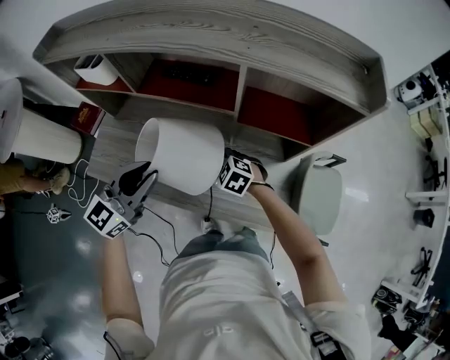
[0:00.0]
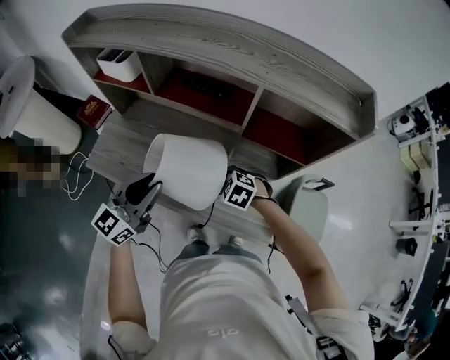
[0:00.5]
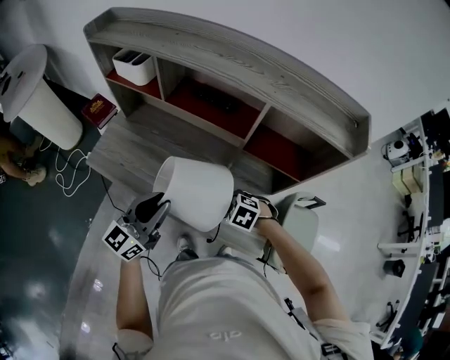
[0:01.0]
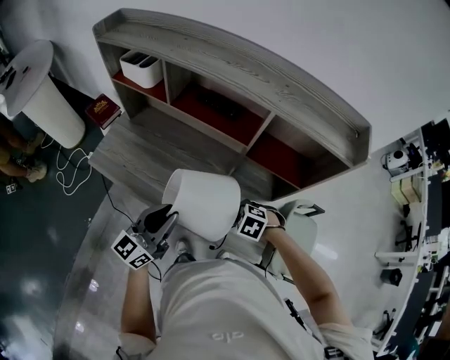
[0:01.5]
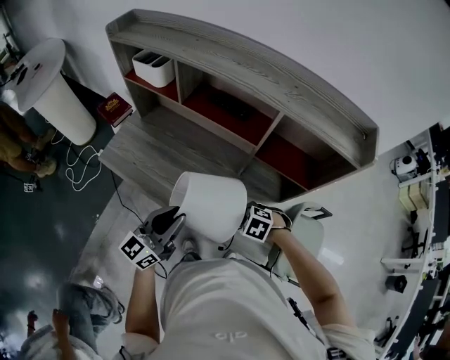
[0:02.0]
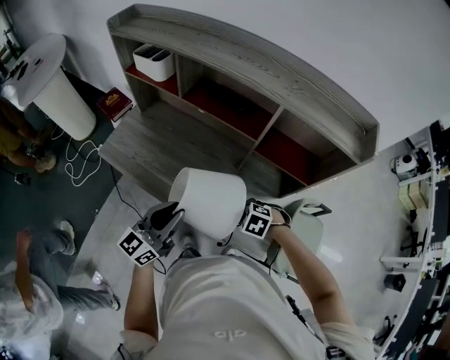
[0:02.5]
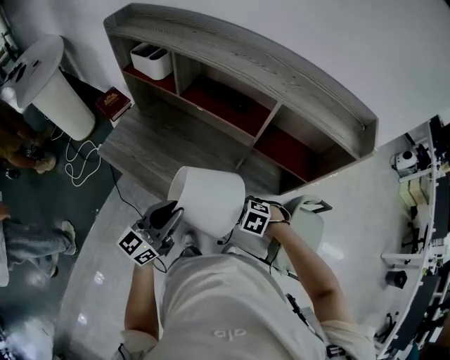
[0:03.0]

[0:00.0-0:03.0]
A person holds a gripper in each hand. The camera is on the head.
0:00.0 to 0:01.5: The right gripper changes place by about 15 cm, and changes its angle by roughly 20 degrees; the left gripper ends up some 10 cm from where it was, and changes its angle by about 30 degrees.
0:01.5 to 0:03.0: There are only small adjustments of the grippers.

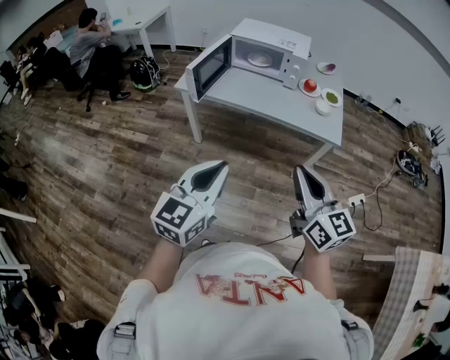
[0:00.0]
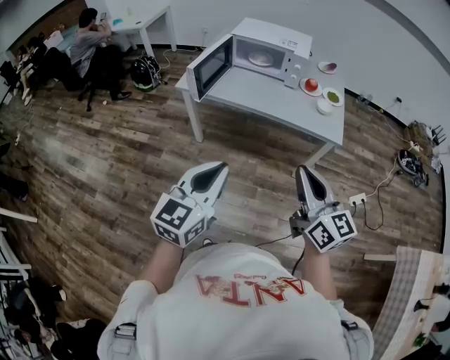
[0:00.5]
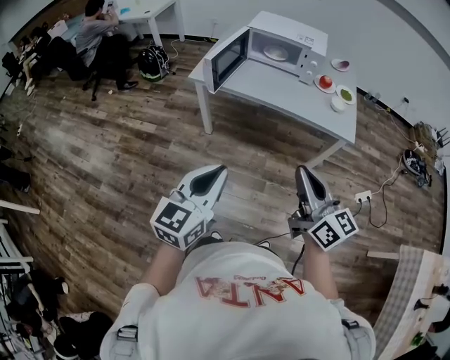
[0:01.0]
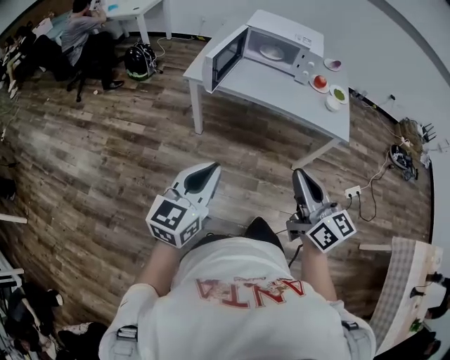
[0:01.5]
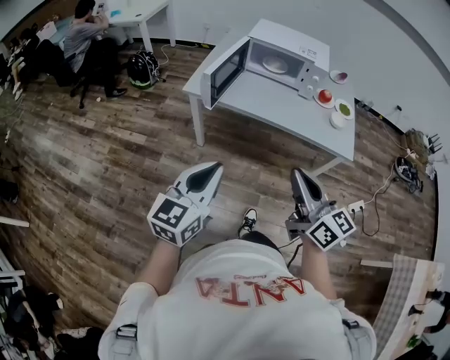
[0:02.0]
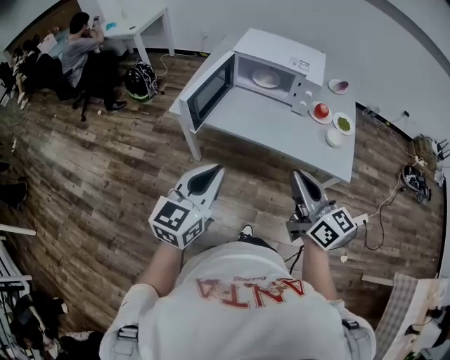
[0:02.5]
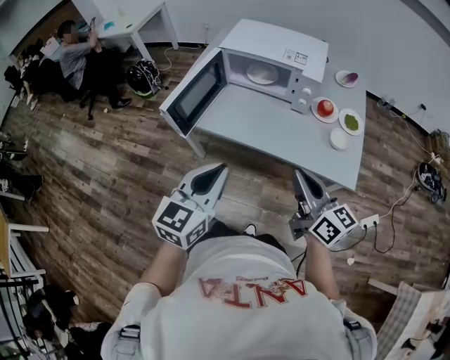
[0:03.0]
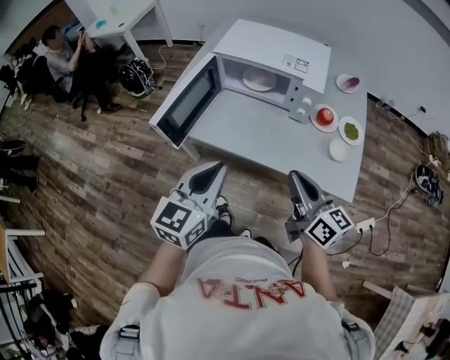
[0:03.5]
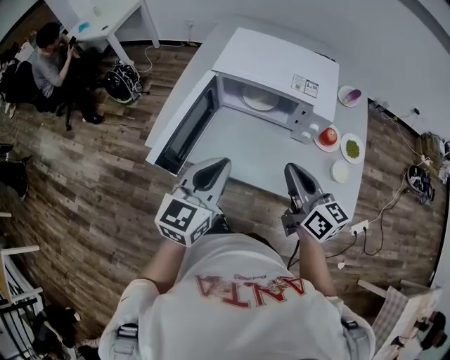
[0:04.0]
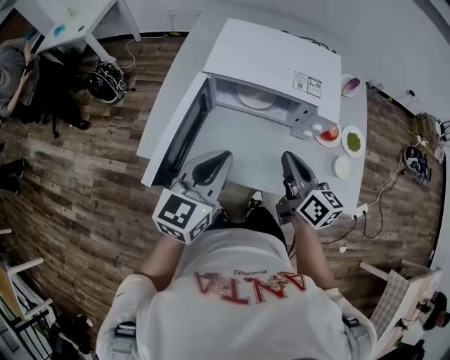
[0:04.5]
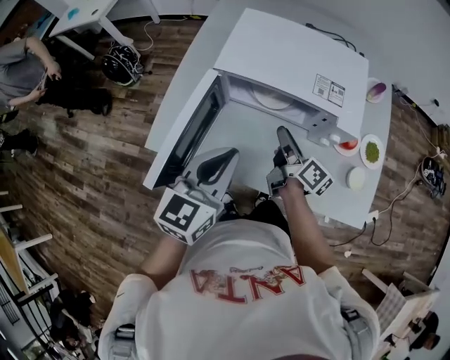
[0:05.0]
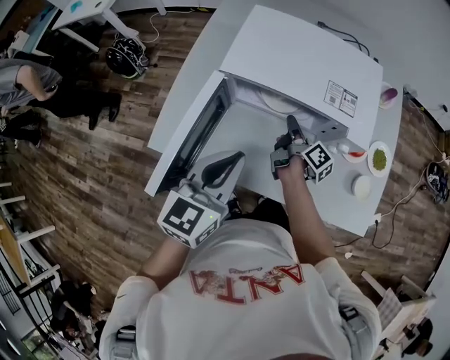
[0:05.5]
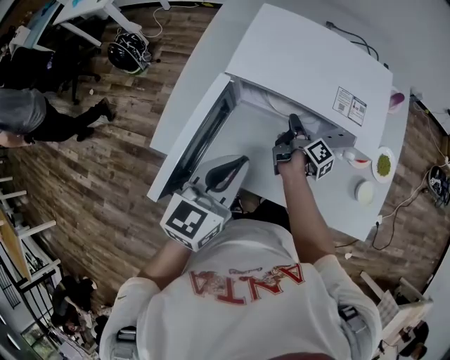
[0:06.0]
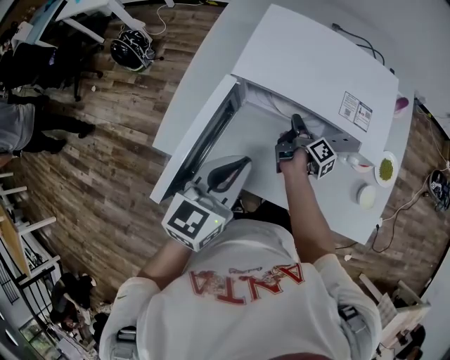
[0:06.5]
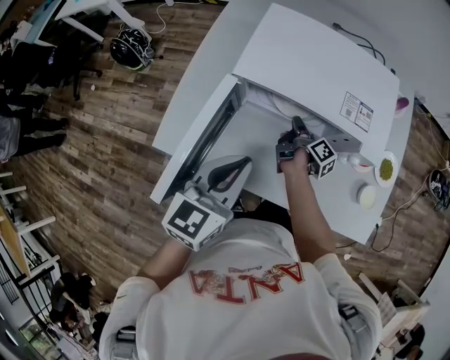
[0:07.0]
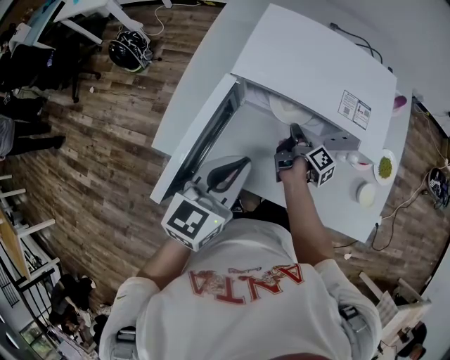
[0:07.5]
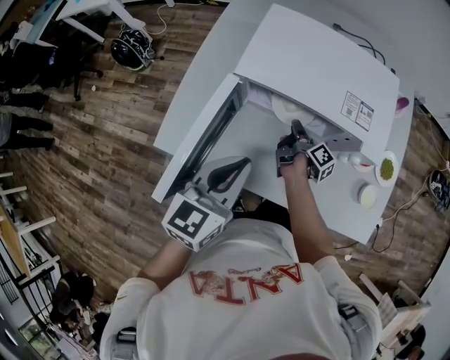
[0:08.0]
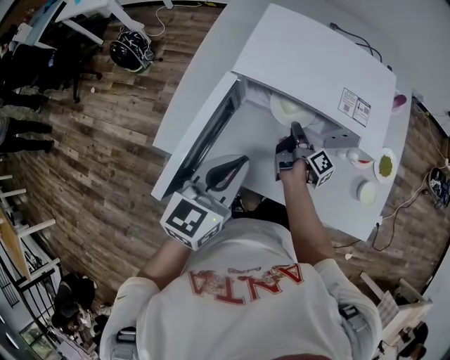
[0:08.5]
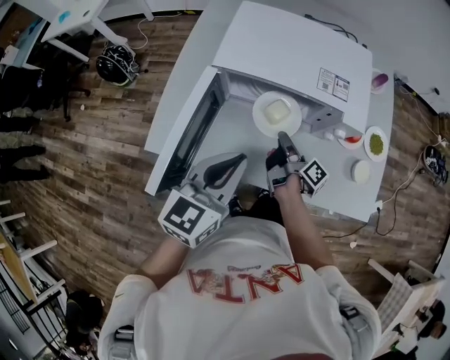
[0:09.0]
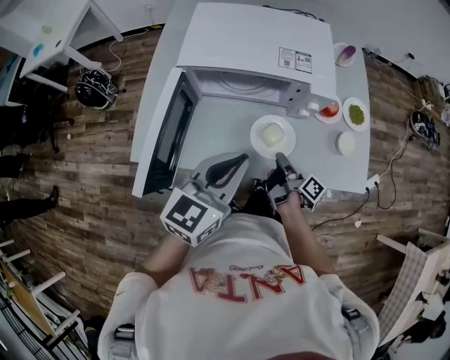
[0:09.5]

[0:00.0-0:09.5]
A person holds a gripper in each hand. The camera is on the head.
0:00.0 to 0:02.0: Both grippers move to the left and forward, approximately 15 cm.
0:02.0 to 0:04.0: The two grippers travel together, forward, some 40 cm.
0:04.0 to 0:05.5: The left gripper is displaced forward by about 10 cm. The right gripper is displaced forward and downward by approximately 30 cm, twists some 50 degrees clockwise, seen from behind, and opens its fingers.
0:05.5 to 0:07.5: The right gripper closes its fingers.
0:07.5 to 0:09.5: The right gripper travels backward and to the right by about 20 cm; the left gripper moves to the right and backward, about 10 cm.

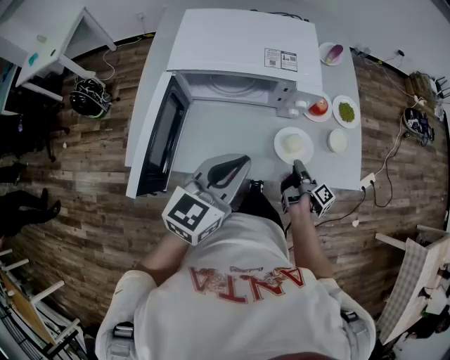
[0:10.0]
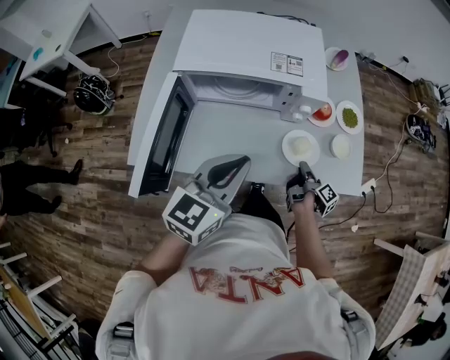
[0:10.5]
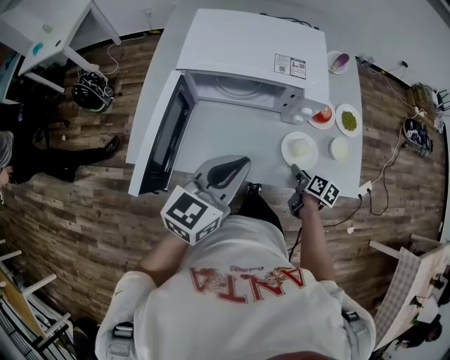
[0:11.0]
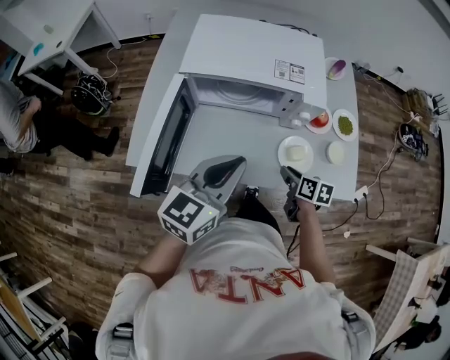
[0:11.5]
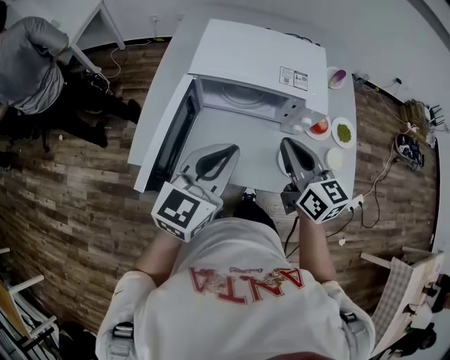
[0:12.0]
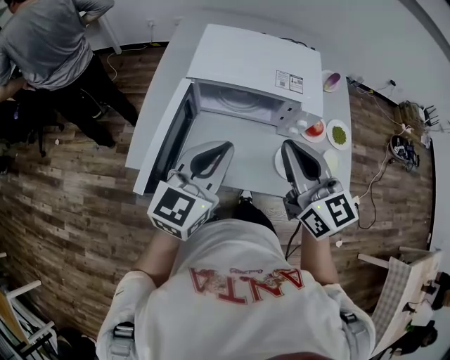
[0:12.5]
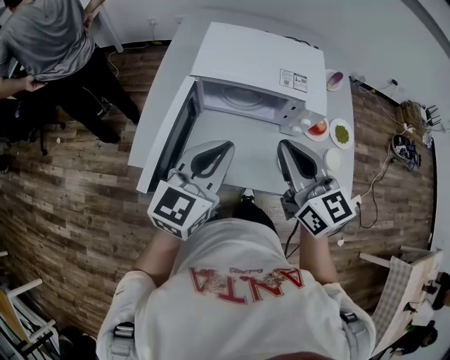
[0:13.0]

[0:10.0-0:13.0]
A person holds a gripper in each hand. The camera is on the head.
0:10.0 to 0:11.5: The right gripper is displaced to the left by some 5 cm, and rolls counterclockwise, seen from behind, by about 60 degrees.
0:11.5 to 0:13.0: The right gripper goes approximately 35 cm upward and to the left, angles its fingers upward, by about 40 degrees, and closes its fingers. Meanwhile the left gripper moves to the left, roughly 5 cm.

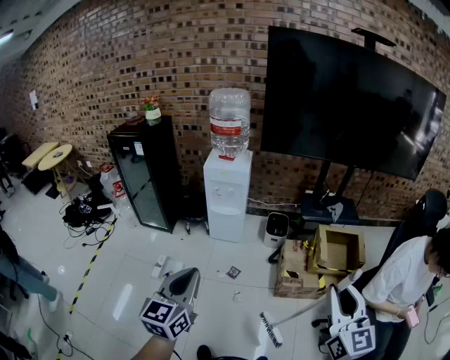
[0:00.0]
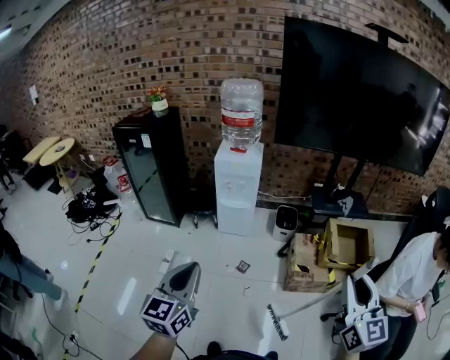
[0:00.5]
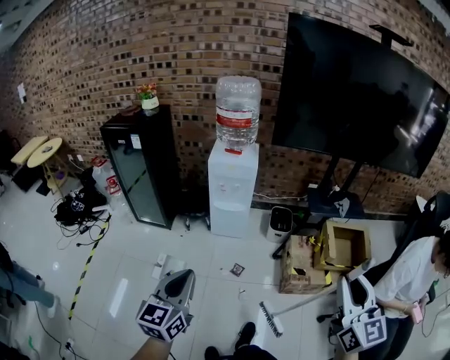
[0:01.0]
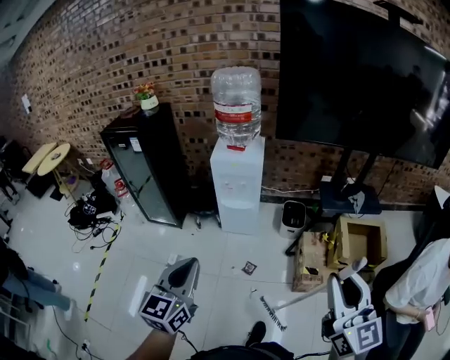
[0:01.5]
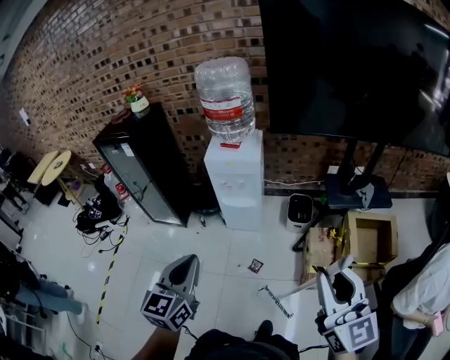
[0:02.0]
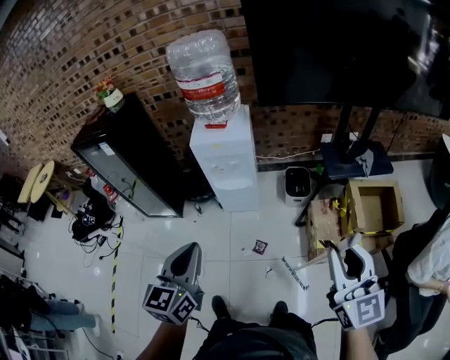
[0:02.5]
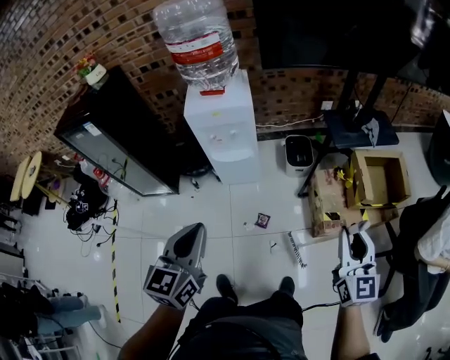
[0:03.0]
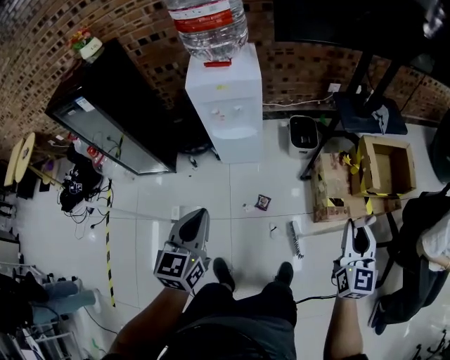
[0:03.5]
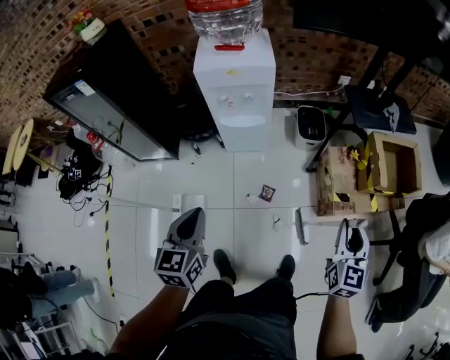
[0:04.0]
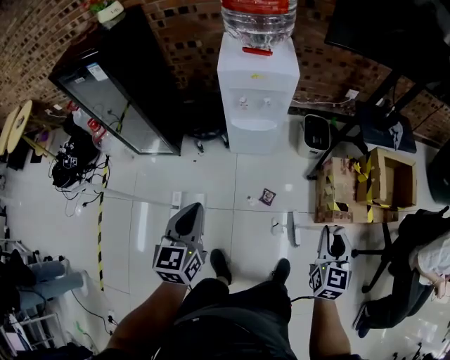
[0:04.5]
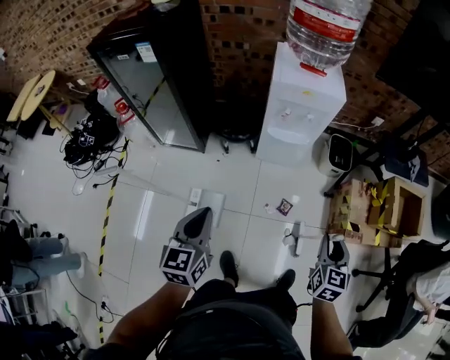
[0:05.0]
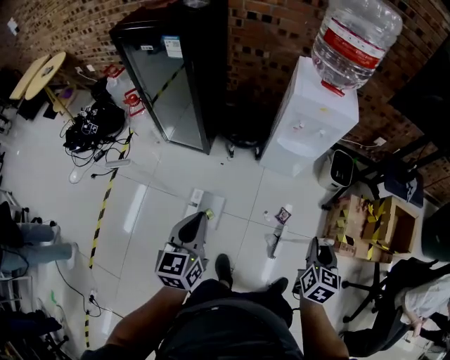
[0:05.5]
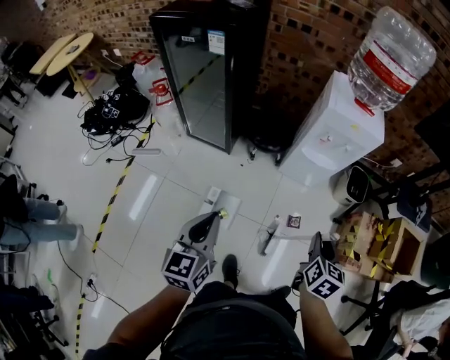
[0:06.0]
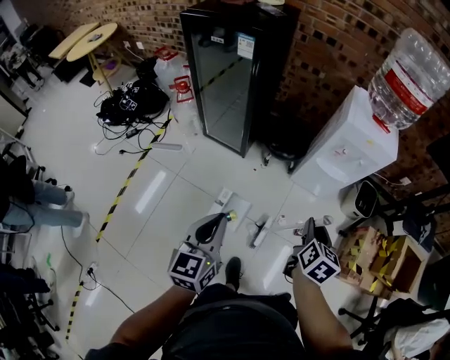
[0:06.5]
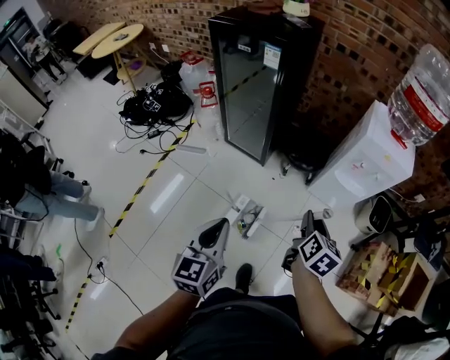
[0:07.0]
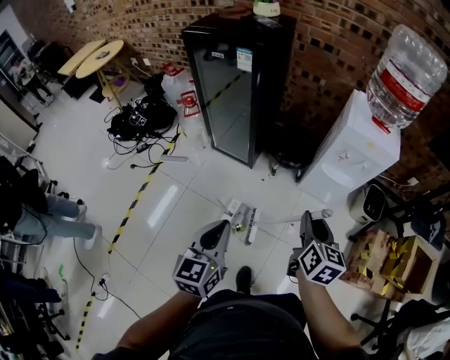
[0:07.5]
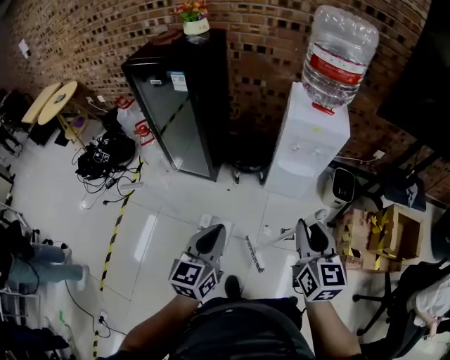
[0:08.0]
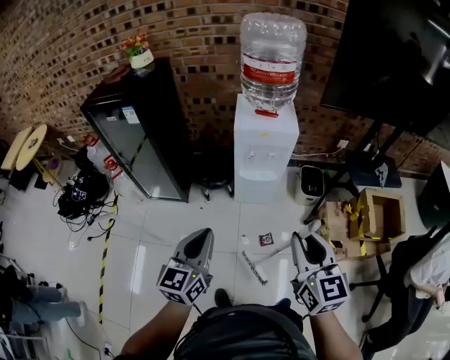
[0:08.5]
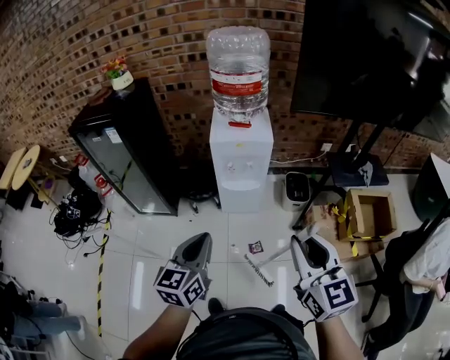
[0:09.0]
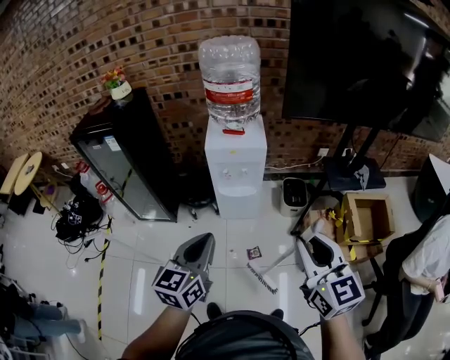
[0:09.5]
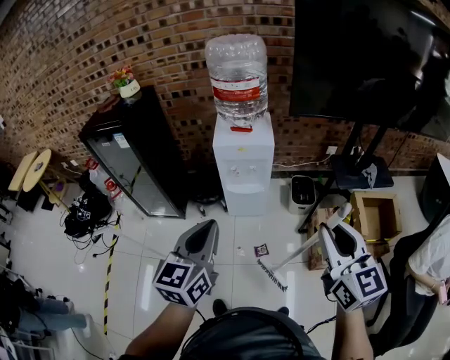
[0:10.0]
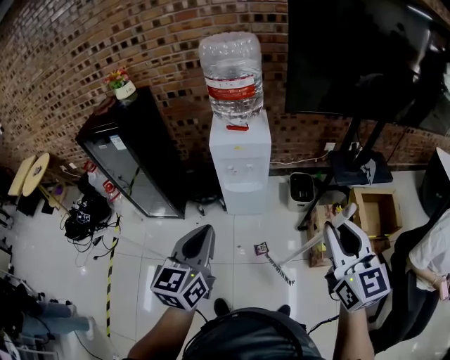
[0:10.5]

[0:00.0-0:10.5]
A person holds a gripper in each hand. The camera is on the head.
0:00.0 to 0:02.0: The two grippers go about 30 cm forward.
0:02.0 to 0:04.0: The left gripper is displaced downward and to the left by about 30 cm; the right gripper is displaced downward by about 35 cm, and turns by about 40 degrees.
0:04.0 to 0:06.5: The pair of grippers is taken to the left, approximately 50 cm. The right gripper rotates roughly 30 degrees. Meanwhile the left gripper turns by about 20 degrees.
0:06.5 to 0:08.5: The left gripper moves to the right, some 25 cm, and rotates approximately 20 degrees, while the right gripper is displaced upward, to the right and backward by roughly 30 cm, and rotates approximately 30 degrees.
0:08.5 to 0:10.5: The grippers both shift to the right and upward by some 20 cm.
